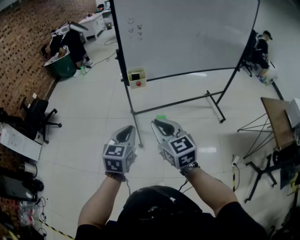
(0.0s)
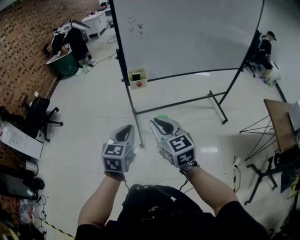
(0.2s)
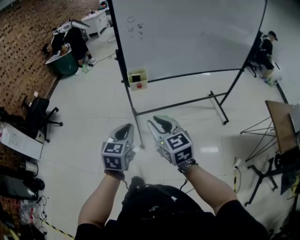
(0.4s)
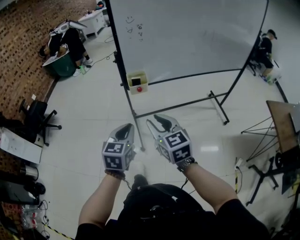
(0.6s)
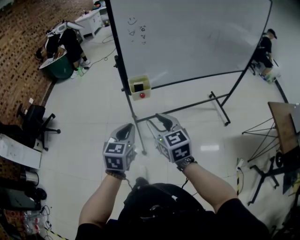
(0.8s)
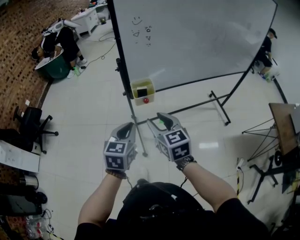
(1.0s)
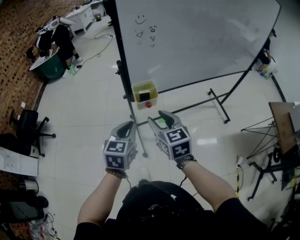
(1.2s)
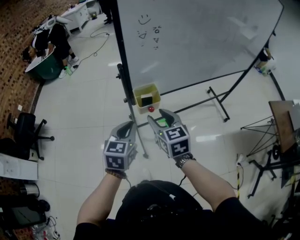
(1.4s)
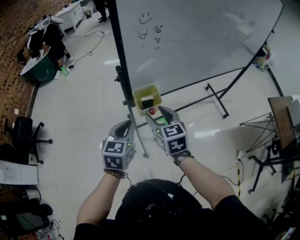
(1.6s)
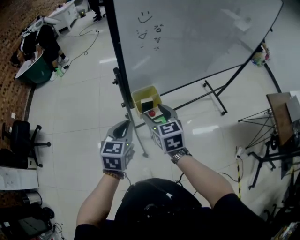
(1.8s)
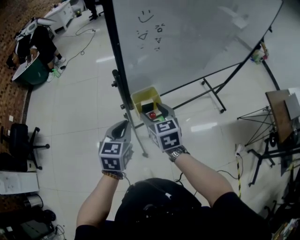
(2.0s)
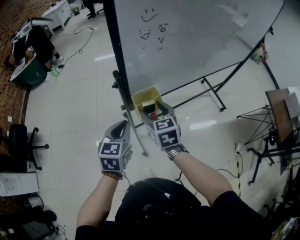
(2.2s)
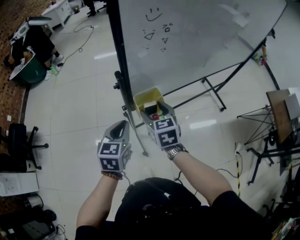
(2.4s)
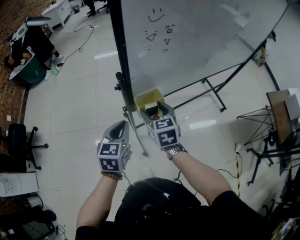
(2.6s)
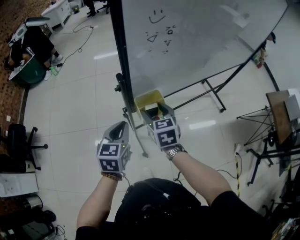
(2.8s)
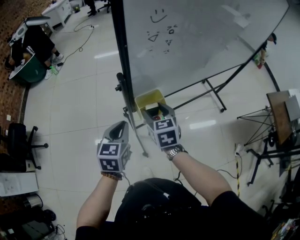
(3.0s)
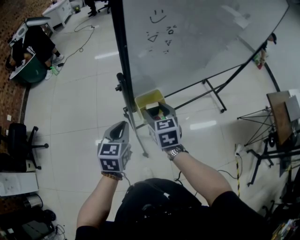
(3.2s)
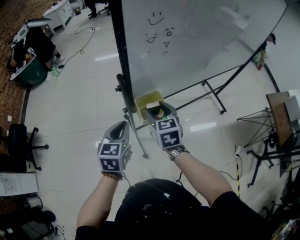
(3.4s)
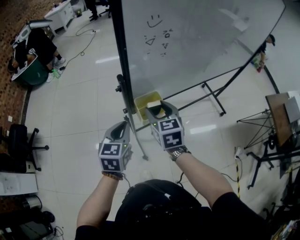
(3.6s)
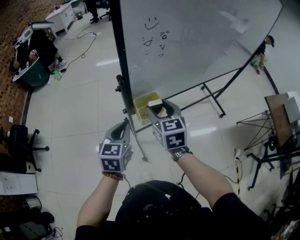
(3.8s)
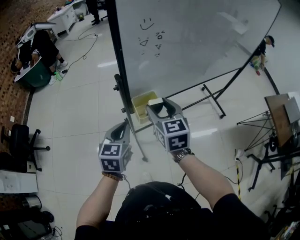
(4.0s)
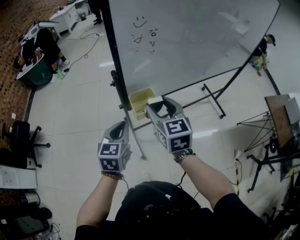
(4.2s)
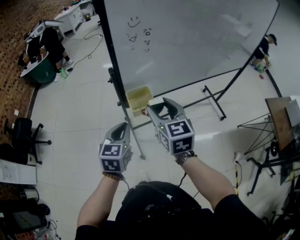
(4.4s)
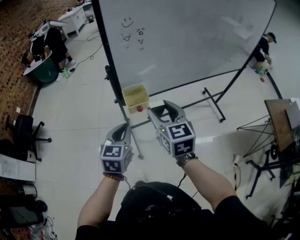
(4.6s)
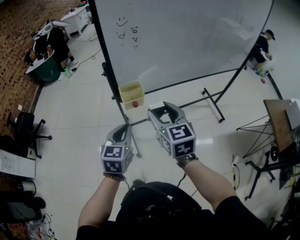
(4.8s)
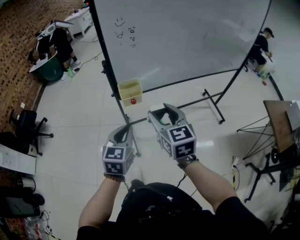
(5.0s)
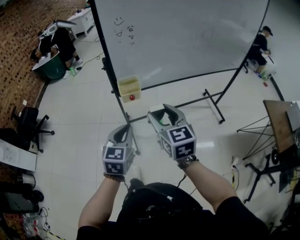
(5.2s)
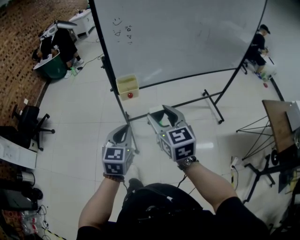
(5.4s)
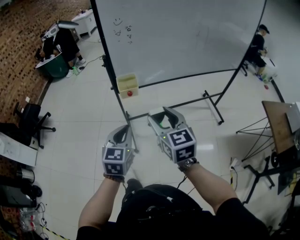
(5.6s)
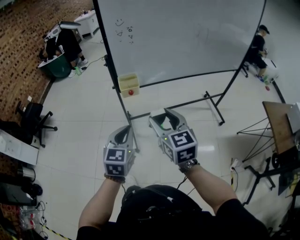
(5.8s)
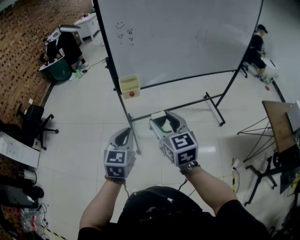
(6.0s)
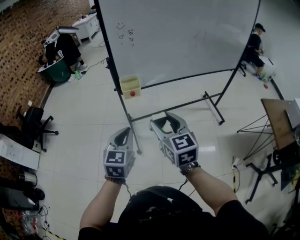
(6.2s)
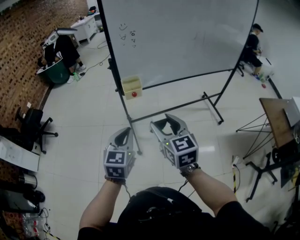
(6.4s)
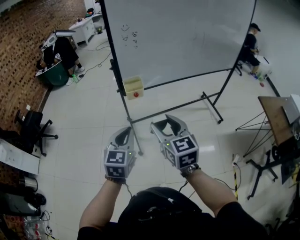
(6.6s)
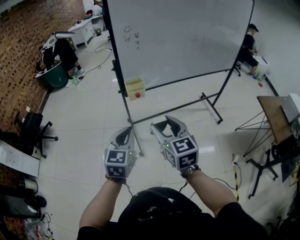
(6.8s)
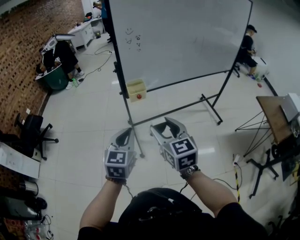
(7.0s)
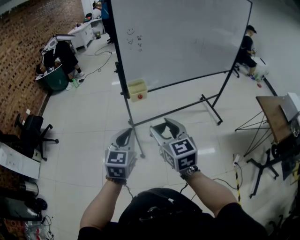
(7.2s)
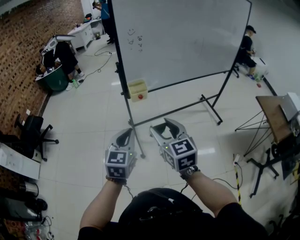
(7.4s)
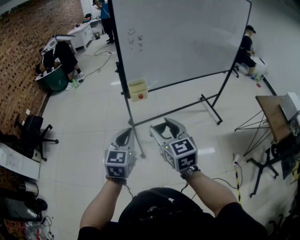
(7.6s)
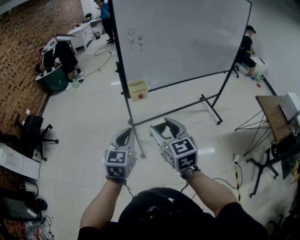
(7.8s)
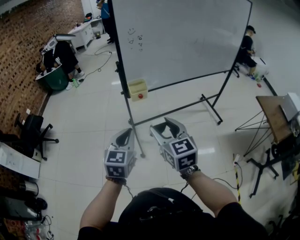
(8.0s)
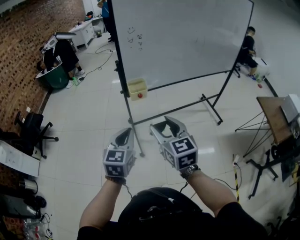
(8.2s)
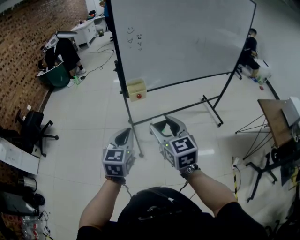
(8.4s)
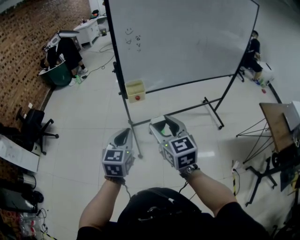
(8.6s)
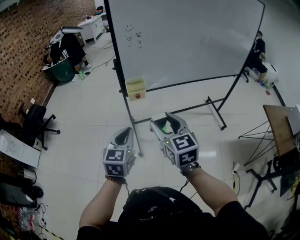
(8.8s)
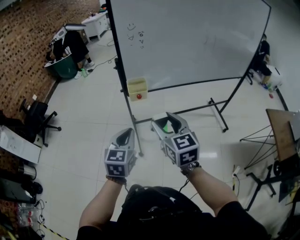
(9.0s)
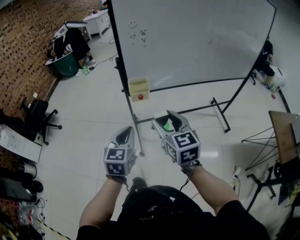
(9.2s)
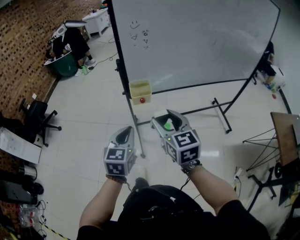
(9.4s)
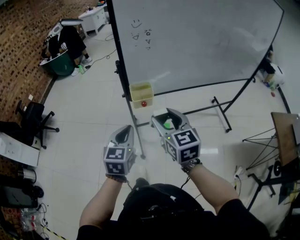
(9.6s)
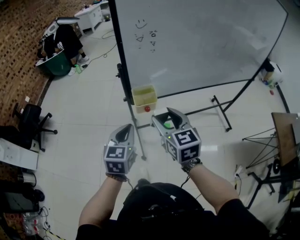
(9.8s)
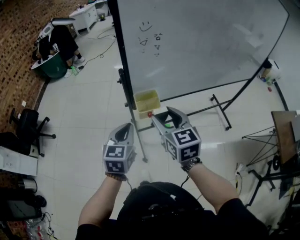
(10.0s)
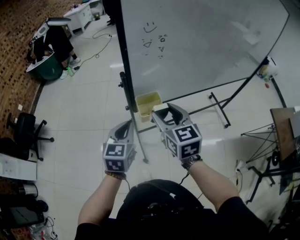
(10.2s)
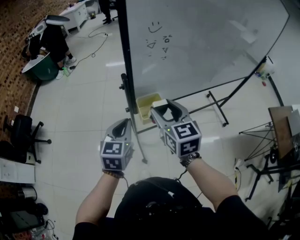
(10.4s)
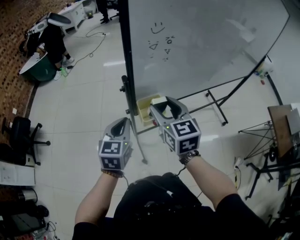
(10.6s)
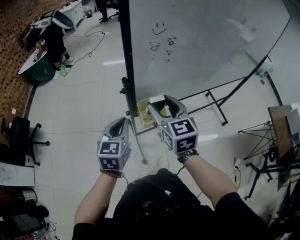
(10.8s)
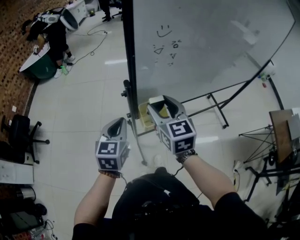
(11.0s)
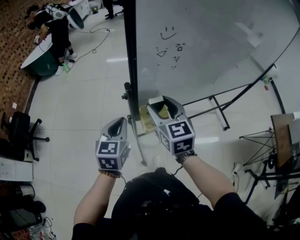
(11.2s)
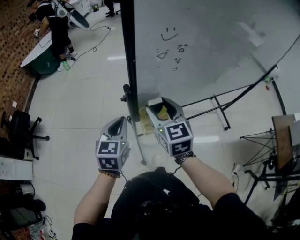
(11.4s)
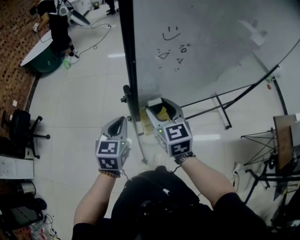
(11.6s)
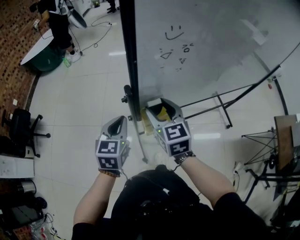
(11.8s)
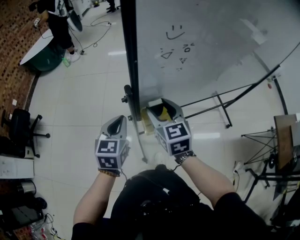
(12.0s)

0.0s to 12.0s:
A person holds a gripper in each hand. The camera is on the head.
0.0s to 1.6s: Both grippers move forward, some 35 cm. The right gripper opens.
1.6s to 3.0s: The left gripper goes roughly 5 cm forward. Meanwhile the right gripper is displaced forward and downward by about 10 cm.
3.0s to 4.4s: The right gripper travels upward, backward and to the right by approximately 15 cm; the left gripper travels backward and to the right by approximately 10 cm.
4.4s to 6.0s: The left gripper moves backward and to the right, roughly 25 cm, while the right gripper travels backward by some 25 cm.
6.0s to 7.6s: The left gripper travels to the left by some 10 cm. Meanwhile the right gripper heads to the left and backward, covering some 10 cm.
7.6s to 9.0s: The left gripper is displaced to the right by about 5 cm. Meanwhile the right gripper is displaced to the right and forward by approximately 10 cm.
9.0s to 10.4s: Both grippers travel together forward, some 25 cm.
10.4s to 12.0s: The right gripper goes approximately 10 cm forward and downward. The left gripper shifts some 10 cm forward.

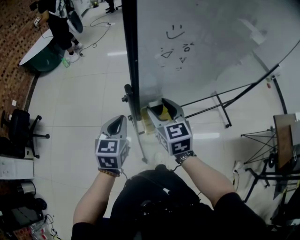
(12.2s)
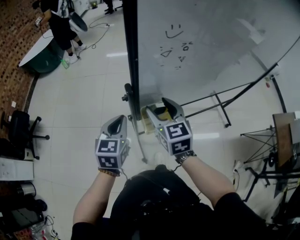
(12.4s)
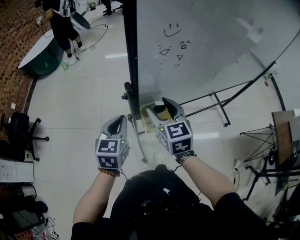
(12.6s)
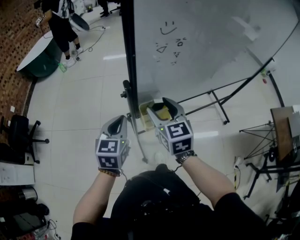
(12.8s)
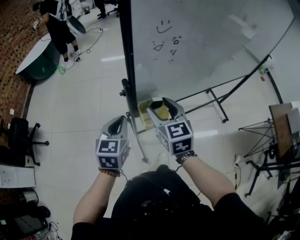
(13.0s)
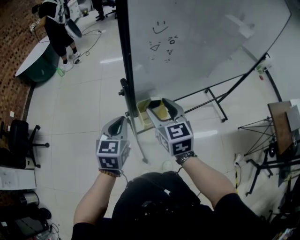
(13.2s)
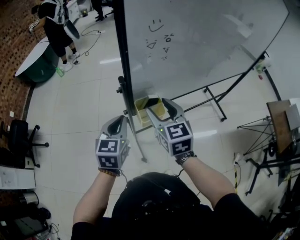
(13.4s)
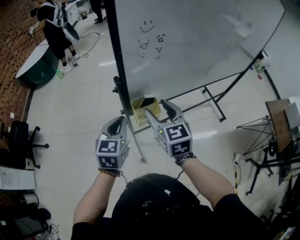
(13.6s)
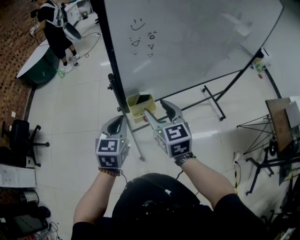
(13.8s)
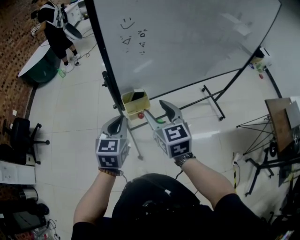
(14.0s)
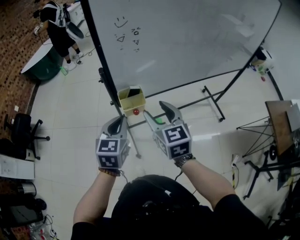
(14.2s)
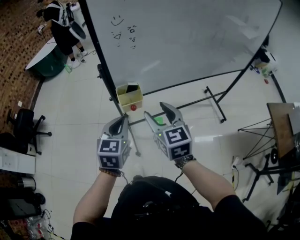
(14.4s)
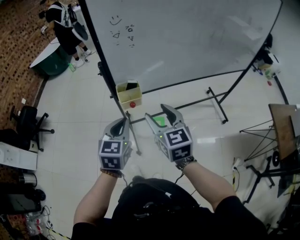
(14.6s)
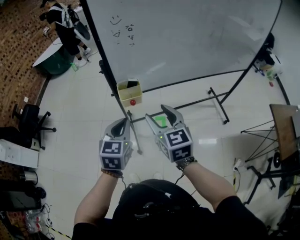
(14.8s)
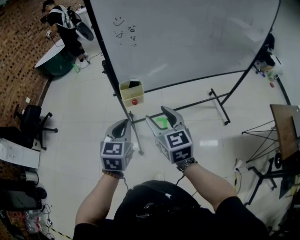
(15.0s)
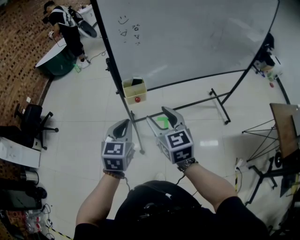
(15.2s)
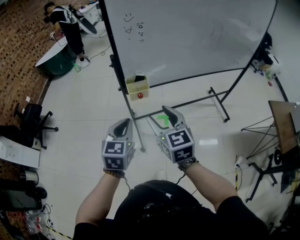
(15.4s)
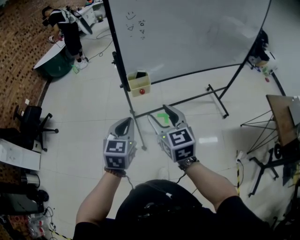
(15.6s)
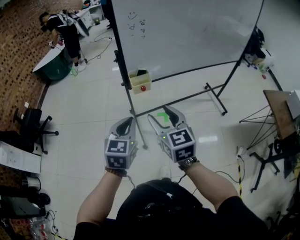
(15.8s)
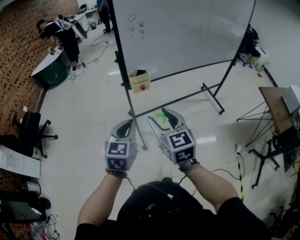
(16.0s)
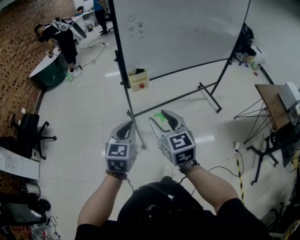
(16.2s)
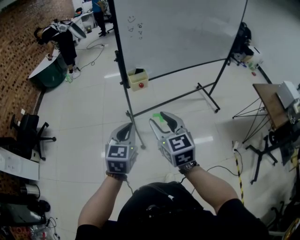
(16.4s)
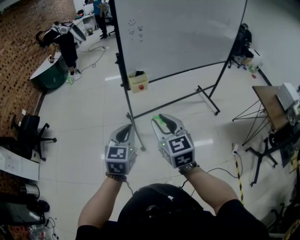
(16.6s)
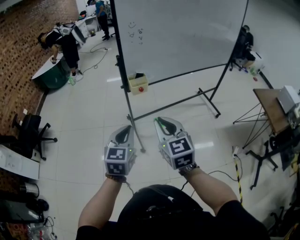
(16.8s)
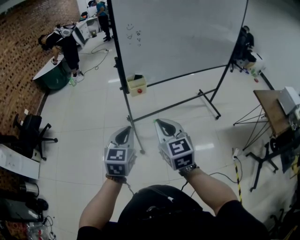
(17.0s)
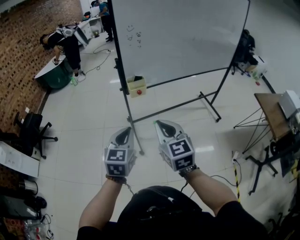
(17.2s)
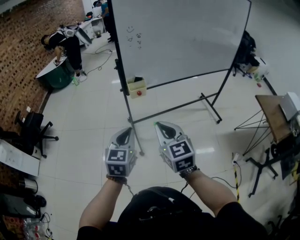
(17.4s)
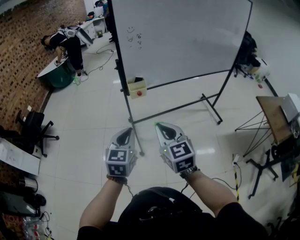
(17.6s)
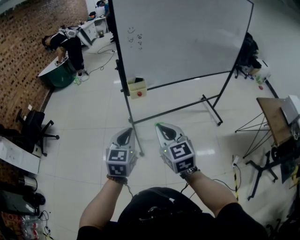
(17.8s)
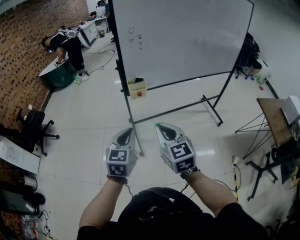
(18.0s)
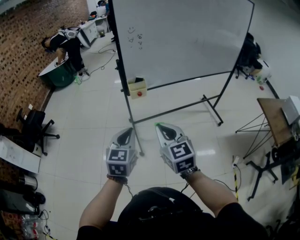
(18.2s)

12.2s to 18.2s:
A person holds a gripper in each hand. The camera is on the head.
12.2s to 13.8s: The grippers both shift backward and to the right by roughly 10 cm.
13.8s to 15.2s: The left gripper is displaced backward and to the right by some 15 cm. Meanwhile the right gripper travels backward by roughly 15 cm.
15.2s to 16.6s: Both grippers move backward, about 15 cm. The right gripper closes up.
16.6s to 18.2s: The right gripper heads to the right, covering some 5 cm, and closes, while the left gripper moves approximately 5 cm.

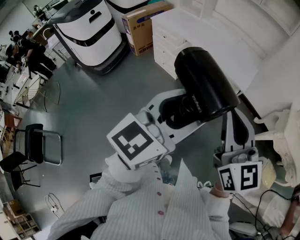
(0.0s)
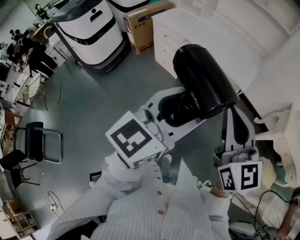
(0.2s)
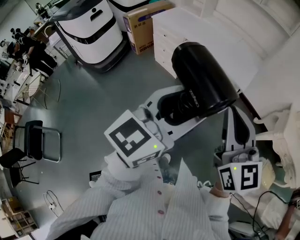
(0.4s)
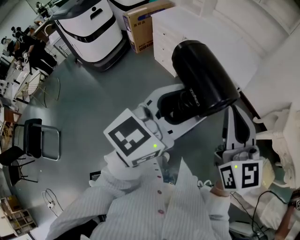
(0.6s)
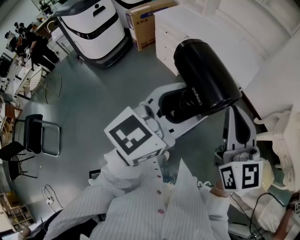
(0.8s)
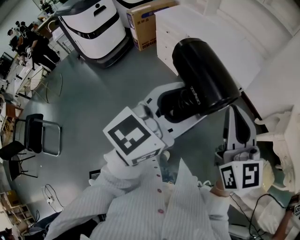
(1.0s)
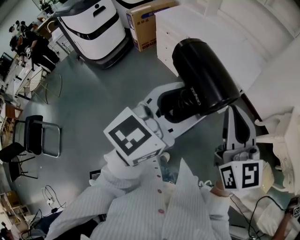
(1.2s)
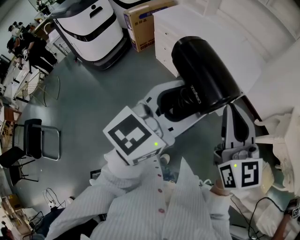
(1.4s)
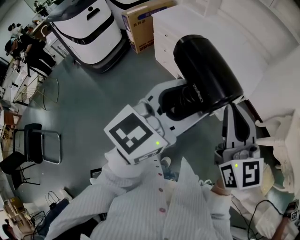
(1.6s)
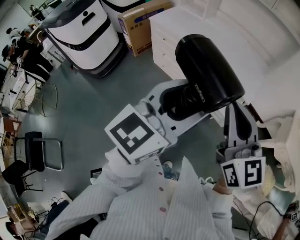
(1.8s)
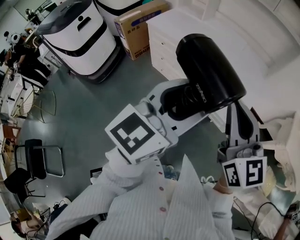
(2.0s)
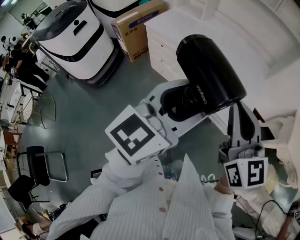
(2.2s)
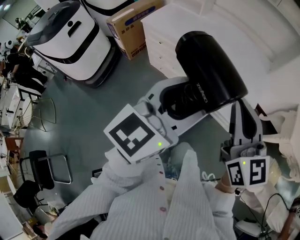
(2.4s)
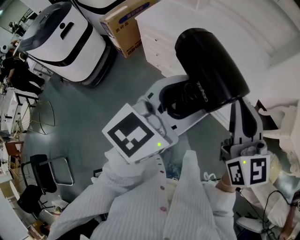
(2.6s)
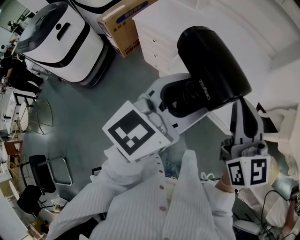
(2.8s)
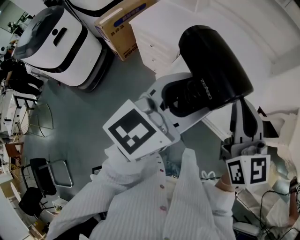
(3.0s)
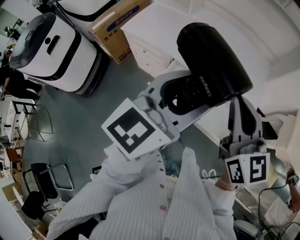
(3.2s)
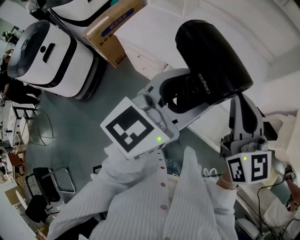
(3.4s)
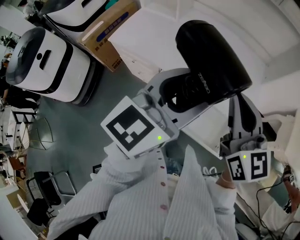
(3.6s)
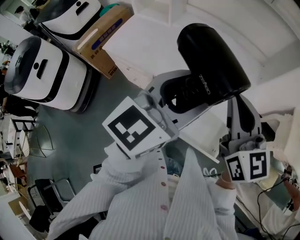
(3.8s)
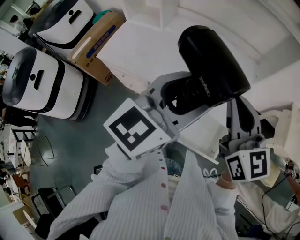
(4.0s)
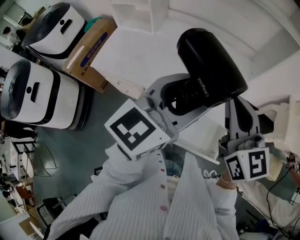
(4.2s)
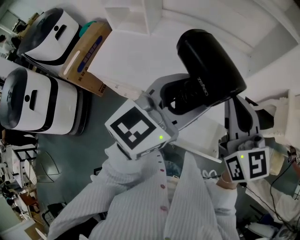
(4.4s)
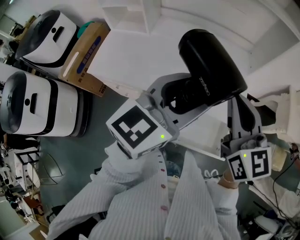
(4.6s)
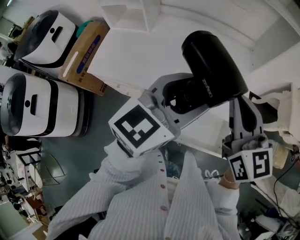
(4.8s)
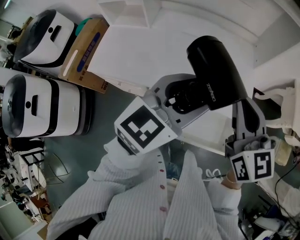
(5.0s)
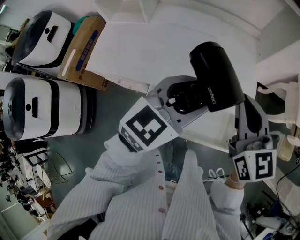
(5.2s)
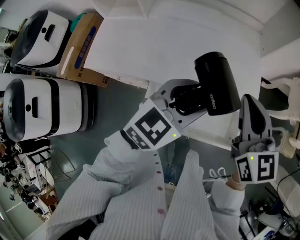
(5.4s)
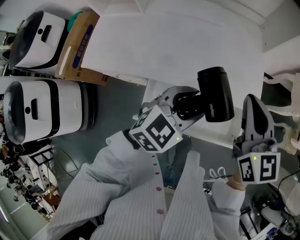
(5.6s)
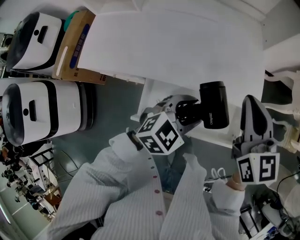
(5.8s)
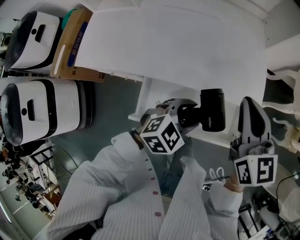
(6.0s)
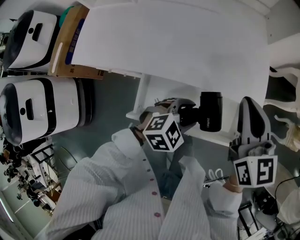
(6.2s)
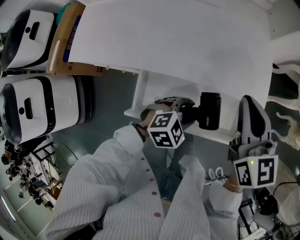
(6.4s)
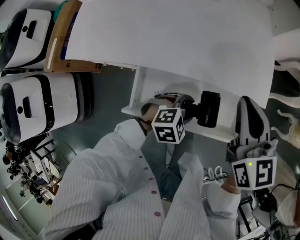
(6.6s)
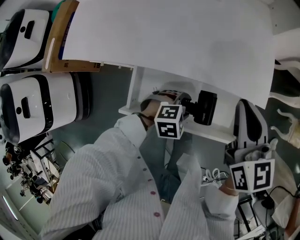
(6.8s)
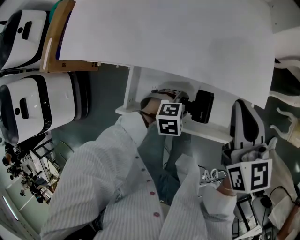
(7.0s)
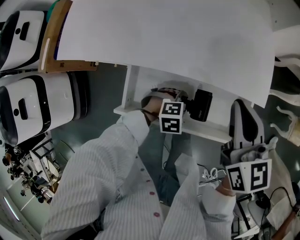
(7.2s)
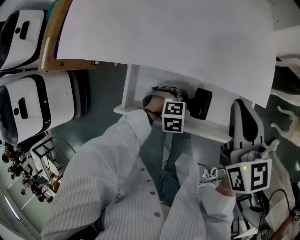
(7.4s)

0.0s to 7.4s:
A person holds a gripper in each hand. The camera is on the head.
0.0s to 1.4s: There are only small adjustments of the grippers.
1.4s to 3.0s: Both grippers move forward, roughly 35 cm.
3.0s to 4.4s: Both grippers move forward, roughly 25 cm.
4.4s to 6.0s: The right gripper shifts some 15 cm downward; the left gripper is displaced downward by about 30 cm, and points its fingers roughly 40 degrees further downward.
6.0s to 7.4s: The right gripper travels downward by some 10 cm. Meanwhile the left gripper heads downward, covering approximately 20 cm, and tips its fingers downward by some 30 degrees.
